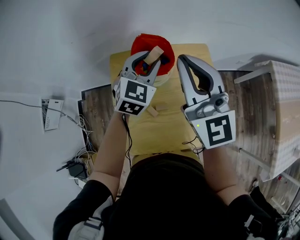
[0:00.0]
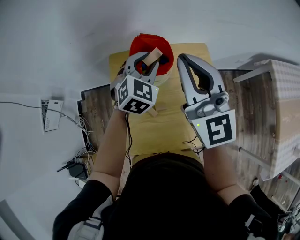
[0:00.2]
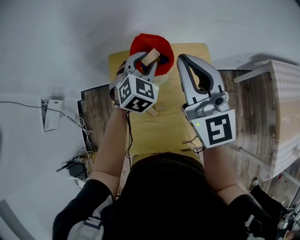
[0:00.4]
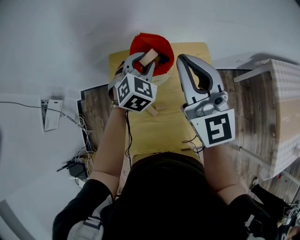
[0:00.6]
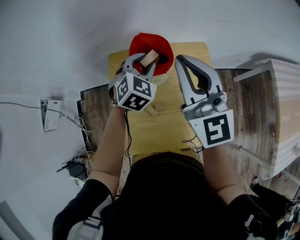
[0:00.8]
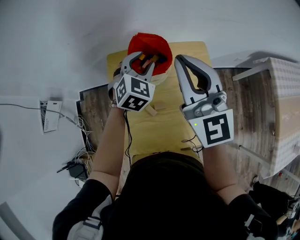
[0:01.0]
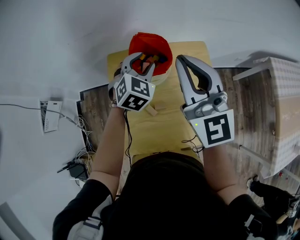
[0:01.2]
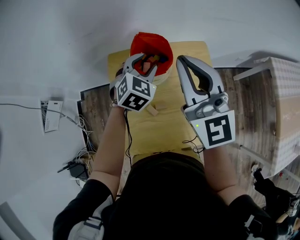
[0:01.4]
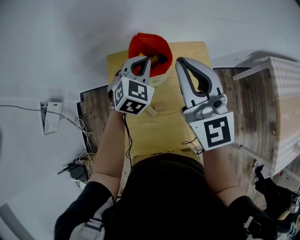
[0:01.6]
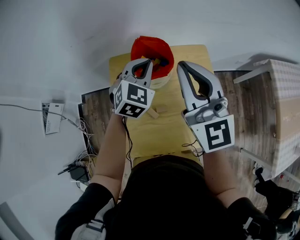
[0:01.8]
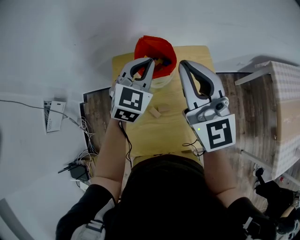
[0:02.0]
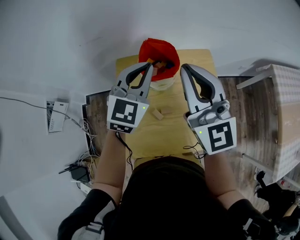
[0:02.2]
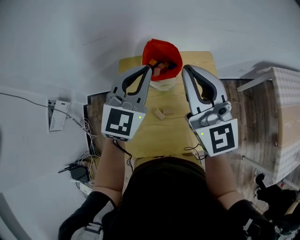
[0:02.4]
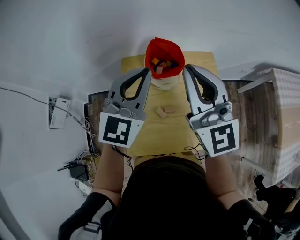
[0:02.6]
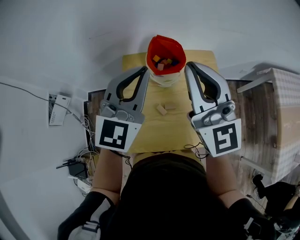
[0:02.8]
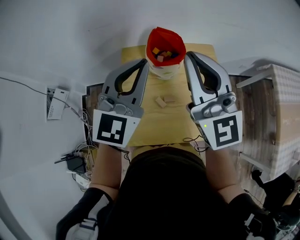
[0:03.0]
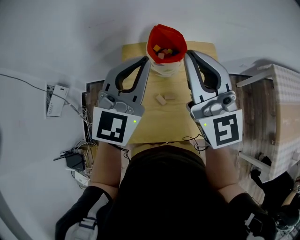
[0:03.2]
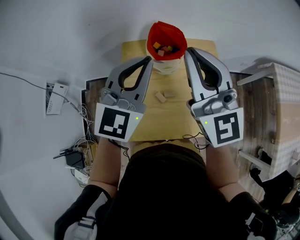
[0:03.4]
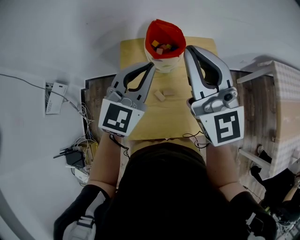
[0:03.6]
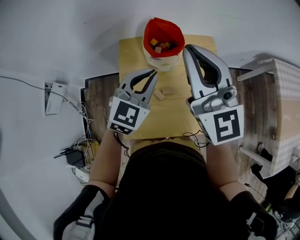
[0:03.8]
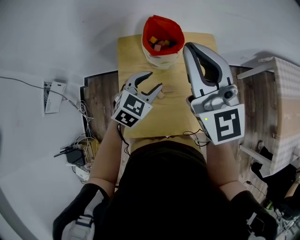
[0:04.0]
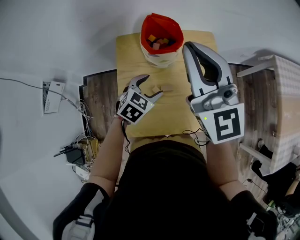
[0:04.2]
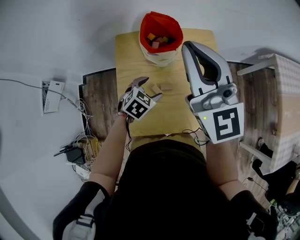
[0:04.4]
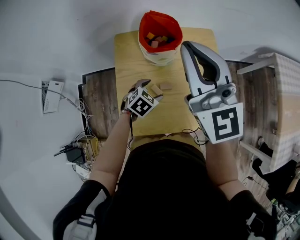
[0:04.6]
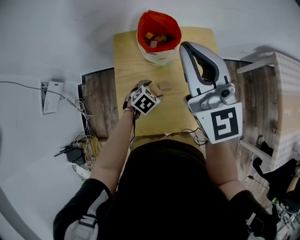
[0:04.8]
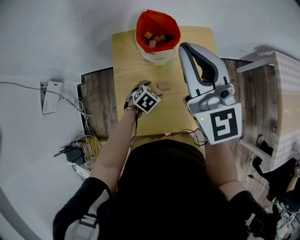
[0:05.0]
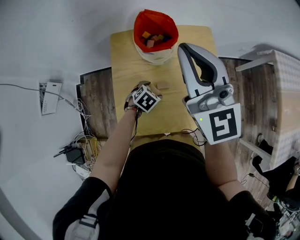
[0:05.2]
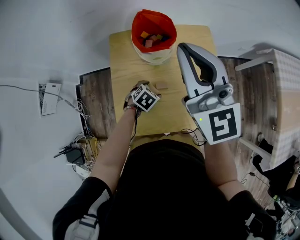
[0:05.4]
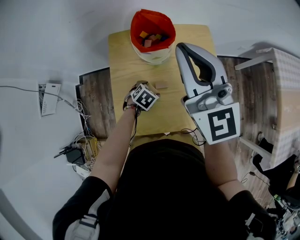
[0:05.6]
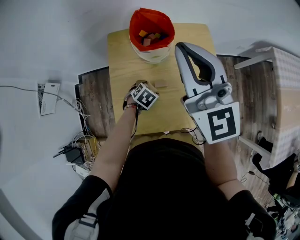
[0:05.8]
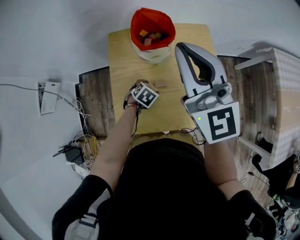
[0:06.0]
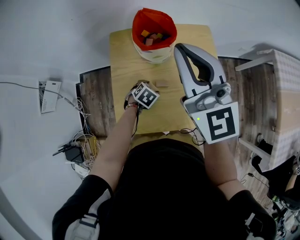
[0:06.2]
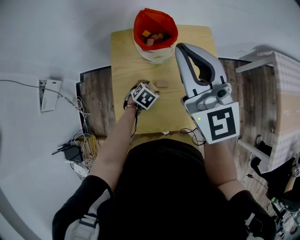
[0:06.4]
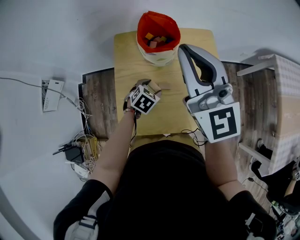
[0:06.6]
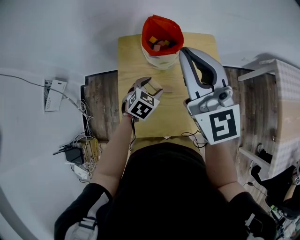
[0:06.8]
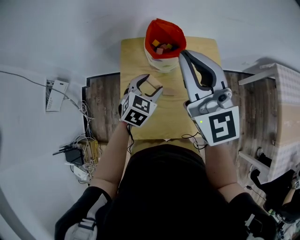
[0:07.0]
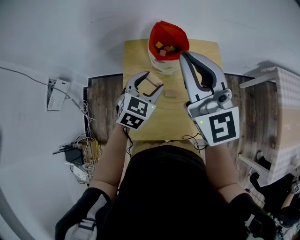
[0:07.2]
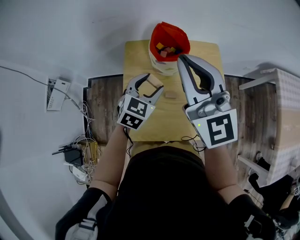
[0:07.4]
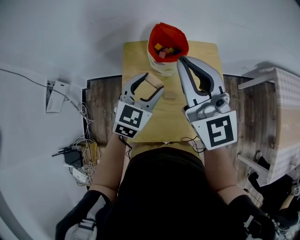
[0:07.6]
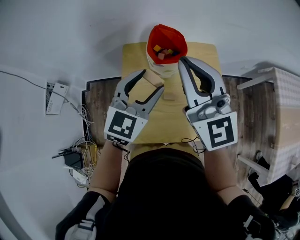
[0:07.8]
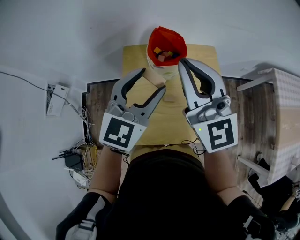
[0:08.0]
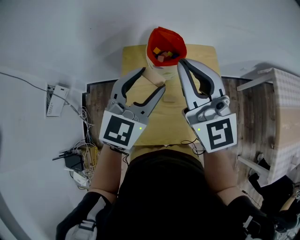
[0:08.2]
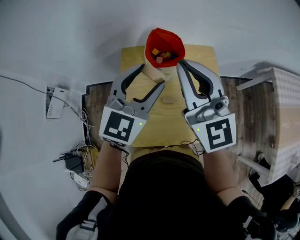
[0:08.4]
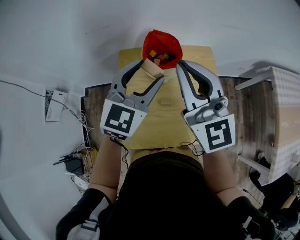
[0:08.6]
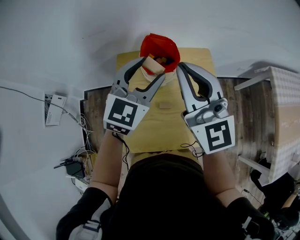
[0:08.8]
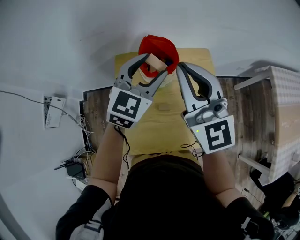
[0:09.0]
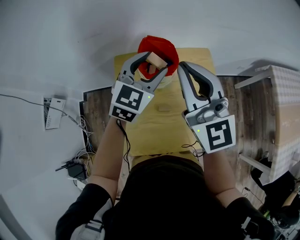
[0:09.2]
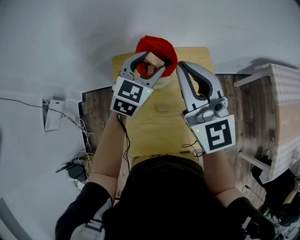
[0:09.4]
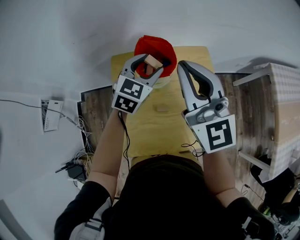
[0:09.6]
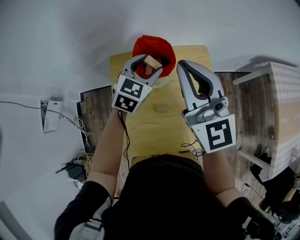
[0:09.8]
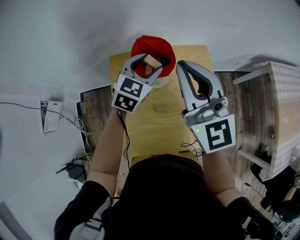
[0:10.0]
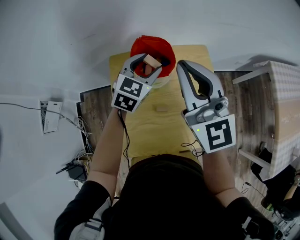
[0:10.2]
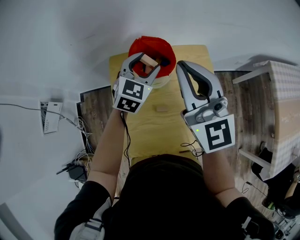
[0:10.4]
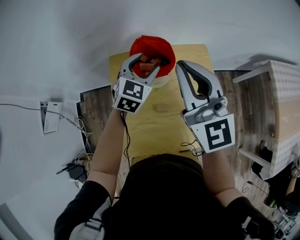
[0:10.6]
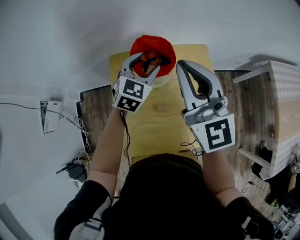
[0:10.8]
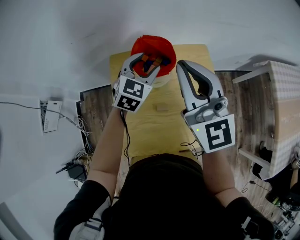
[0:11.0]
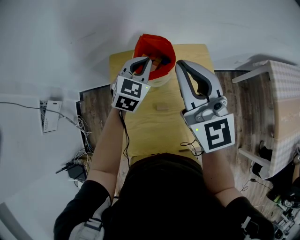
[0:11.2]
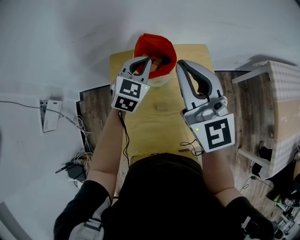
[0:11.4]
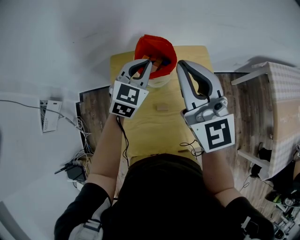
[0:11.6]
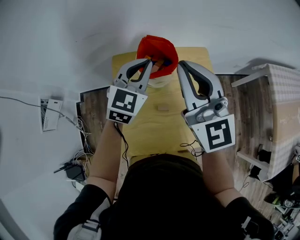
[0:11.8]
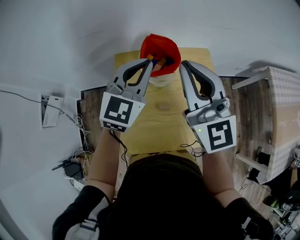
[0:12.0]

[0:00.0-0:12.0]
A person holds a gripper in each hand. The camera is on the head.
0:00.0 to 0:01.6: The left gripper closes up.
0:01.6 to 0:03.0: The left gripper goes roughly 20 cm upward and backward, and rotates approximately 30 degrees; the right gripper is displaced backward and upward by approximately 10 cm.
0:03.0 to 0:04.4: The left gripper is displaced downward by approximately 35 cm, tilts its fingers about 50 degrees downward, and opens its fingers.
0:04.4 to 0:06.0: The left gripper goes some 10 cm downward.
0:06.0 to 0:07.6: The left gripper goes roughly 30 cm upward, and angles its fingers upward, by approximately 50 degrees.
0:07.6 to 0:09.0: The left gripper is displaced forward and upward by about 10 cm. The right gripper shifts by about 5 cm.
0:09.0 to 0:10.4: The left gripper moves downward and forward, about 10 cm.
0:10.4 to 0:12.0: The left gripper heads upward and backward, covering roughly 15 cm, and closes its fingers.

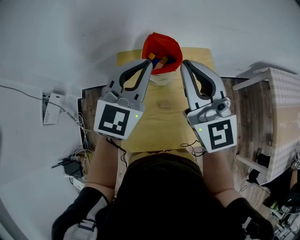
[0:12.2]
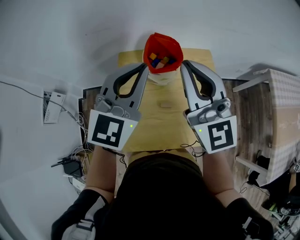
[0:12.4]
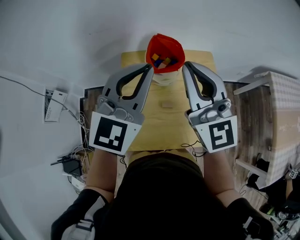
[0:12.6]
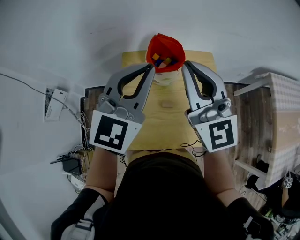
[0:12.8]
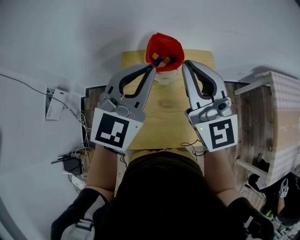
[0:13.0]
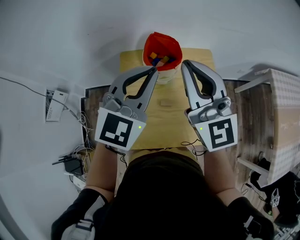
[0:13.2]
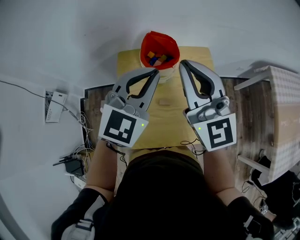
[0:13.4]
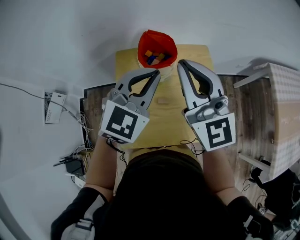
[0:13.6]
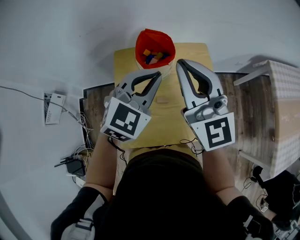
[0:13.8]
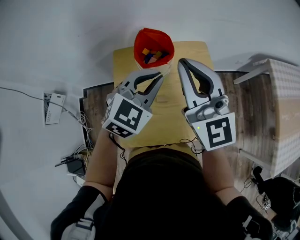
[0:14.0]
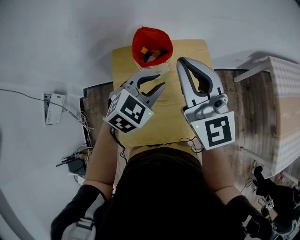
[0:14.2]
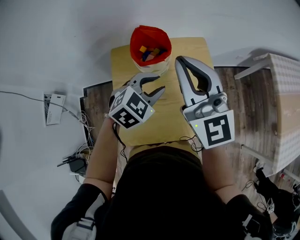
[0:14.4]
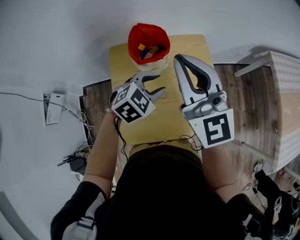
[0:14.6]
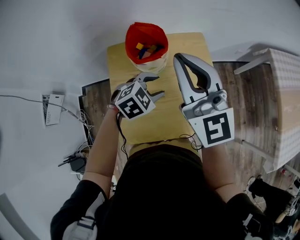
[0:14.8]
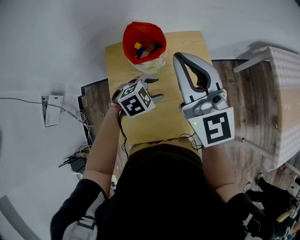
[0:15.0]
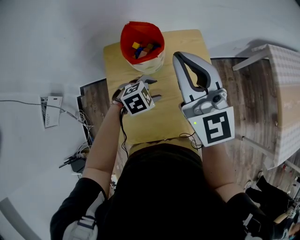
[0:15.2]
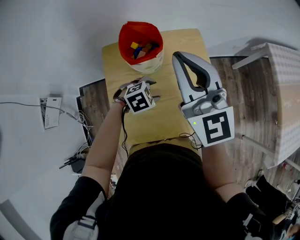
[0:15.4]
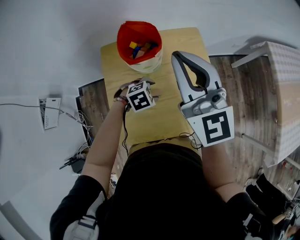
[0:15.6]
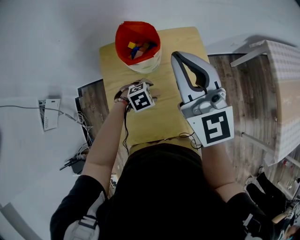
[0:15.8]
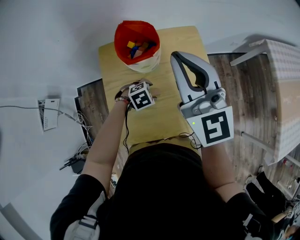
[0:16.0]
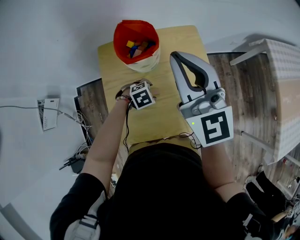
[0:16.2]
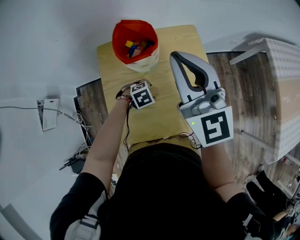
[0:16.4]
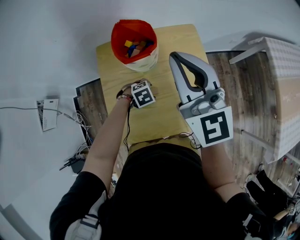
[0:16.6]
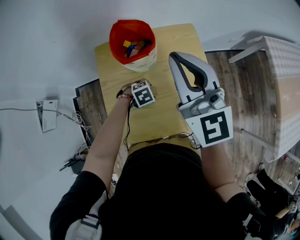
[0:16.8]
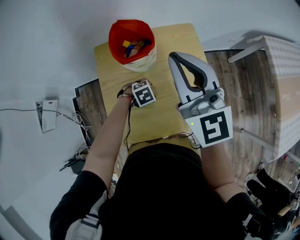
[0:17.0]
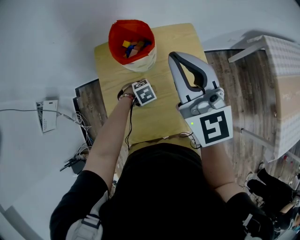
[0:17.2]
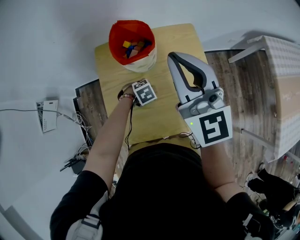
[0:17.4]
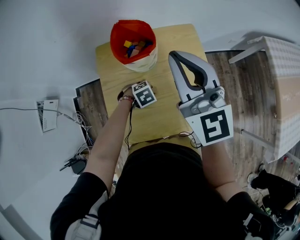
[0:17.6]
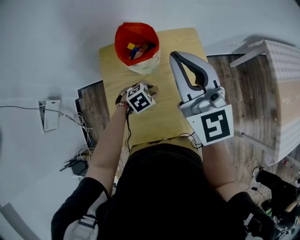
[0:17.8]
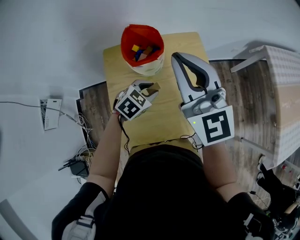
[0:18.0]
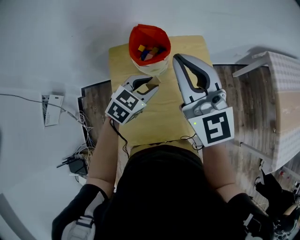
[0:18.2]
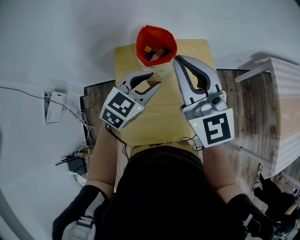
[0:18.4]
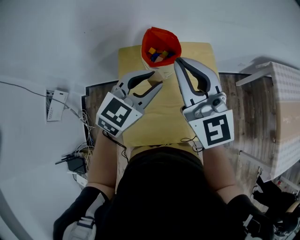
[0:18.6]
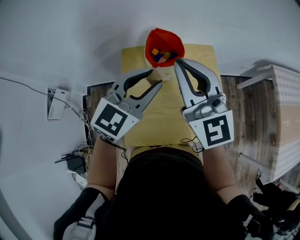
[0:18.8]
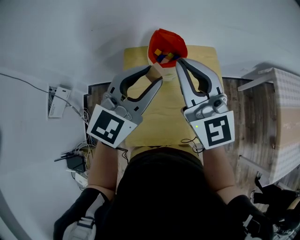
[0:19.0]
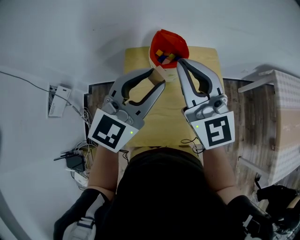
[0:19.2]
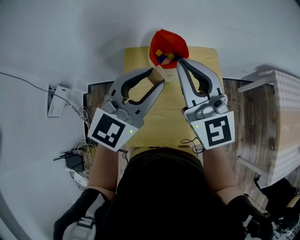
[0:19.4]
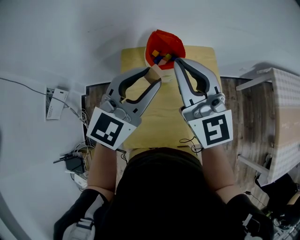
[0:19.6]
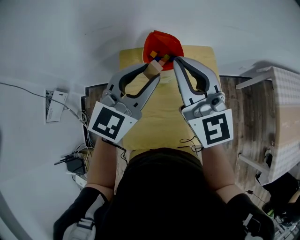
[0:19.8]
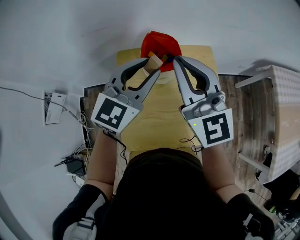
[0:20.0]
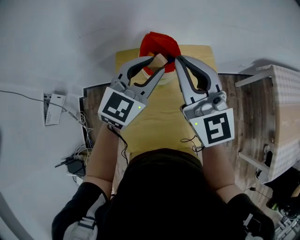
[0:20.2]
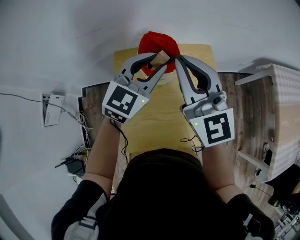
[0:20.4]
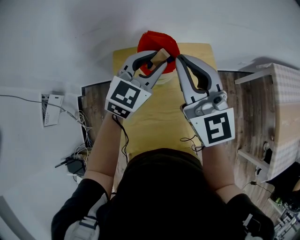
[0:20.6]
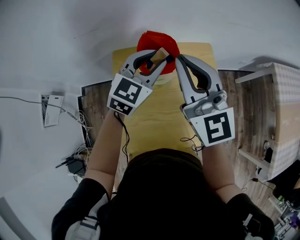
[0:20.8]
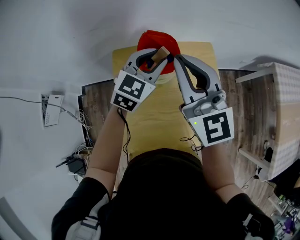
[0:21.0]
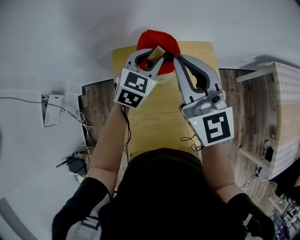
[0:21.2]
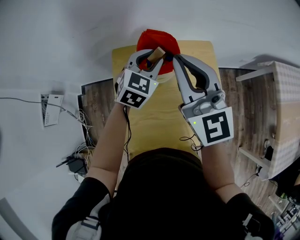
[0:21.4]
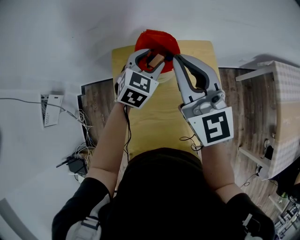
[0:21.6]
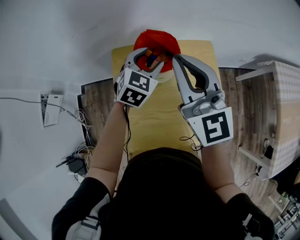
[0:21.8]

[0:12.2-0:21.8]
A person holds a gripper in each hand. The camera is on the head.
0:12.2 to 0:13.8: The left gripper shifts about 5 cm to the right.
0:13.8 to 0:15.4: The left gripper travels downward by about 25 cm, tips its fingers downward by about 40 degrees, and opens its fingers.
0:15.4 to 0:17.0: The left gripper is displaced downward by approximately 10 cm.
0:17.0 to 0:18.6: The left gripper travels upward by approximately 35 cm, points its fingers approximately 50 degrees further upward, and closes its fingers. Meanwhile the right gripper ends up roughly 10 cm from where it was.
0:18.6 to 0:20.2: The right gripper changes place by roughly 5 cm. The left gripper shifts roughly 5 cm forward.
0:20.2 to 0:21.8: The left gripper is displaced downward and forward by some 15 cm, and swivels about 20 degrees.

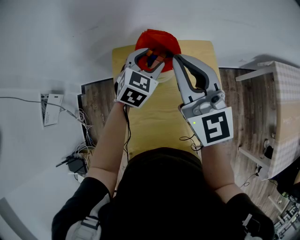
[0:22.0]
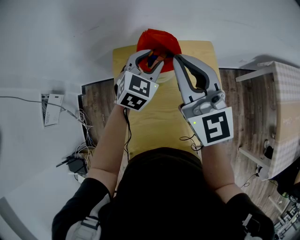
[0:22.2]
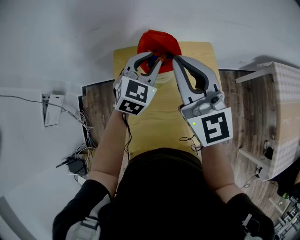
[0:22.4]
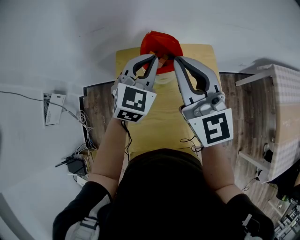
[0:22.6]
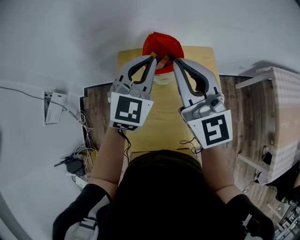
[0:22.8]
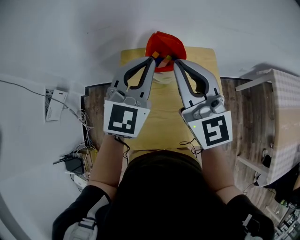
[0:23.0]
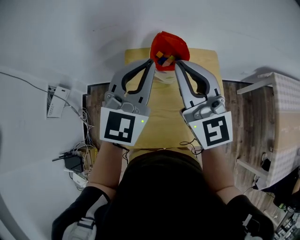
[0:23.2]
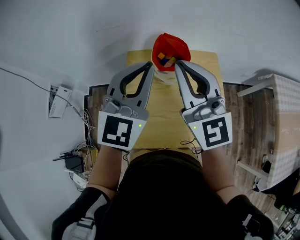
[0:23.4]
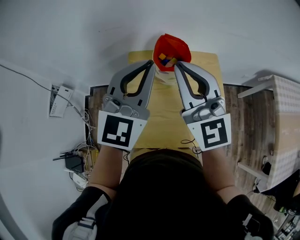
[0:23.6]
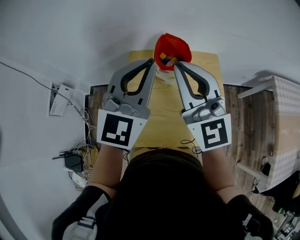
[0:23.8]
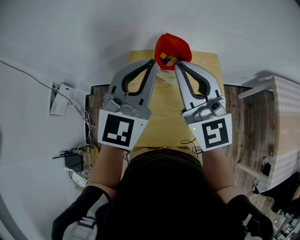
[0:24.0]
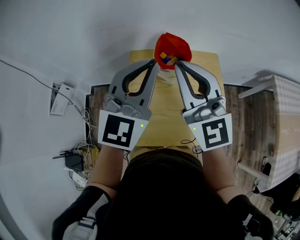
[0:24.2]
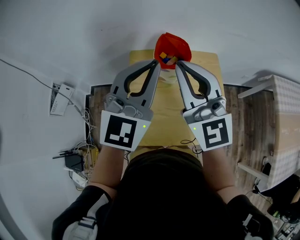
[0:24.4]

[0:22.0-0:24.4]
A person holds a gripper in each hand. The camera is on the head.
0:22.0 to 0:23.2: The left gripper heads upward and backward, covering about 20 cm, tips its fingers upward by about 30 degrees, and closes; the right gripper shifts about 5 cm backward.
0:23.2 to 0:24.4: The left gripper ends up about 5 cm from where it was.
